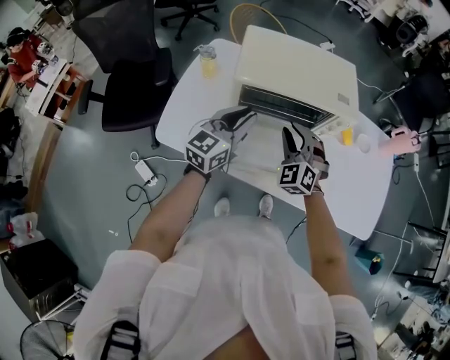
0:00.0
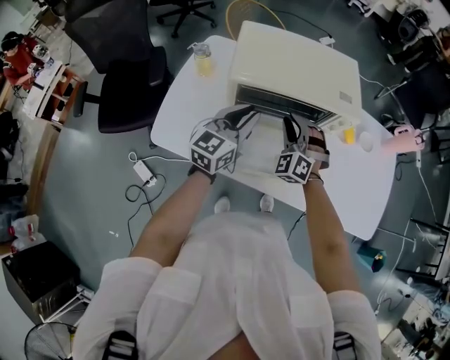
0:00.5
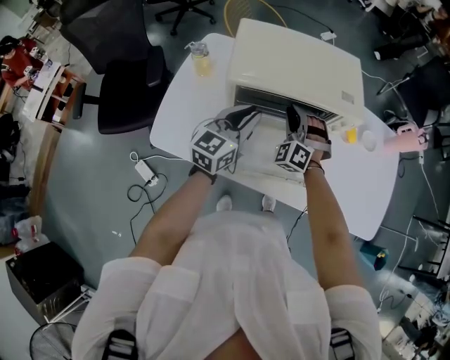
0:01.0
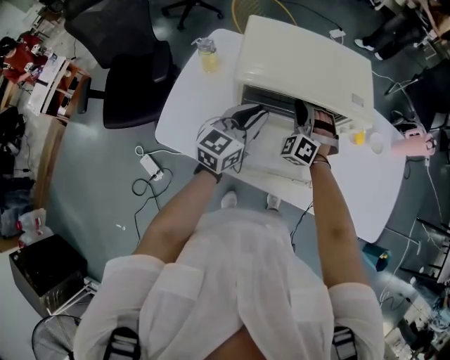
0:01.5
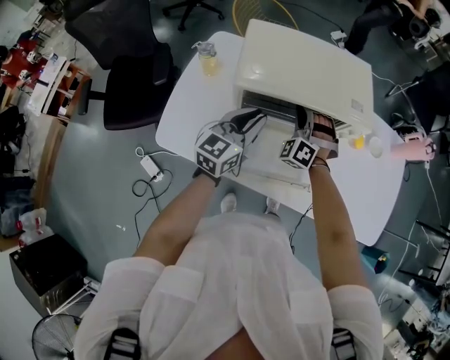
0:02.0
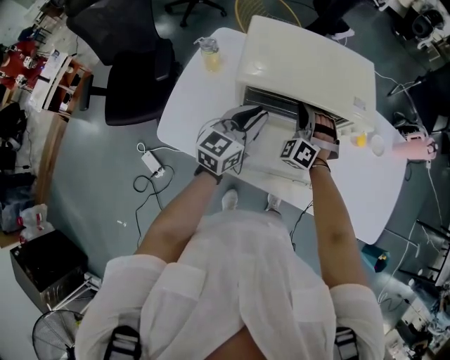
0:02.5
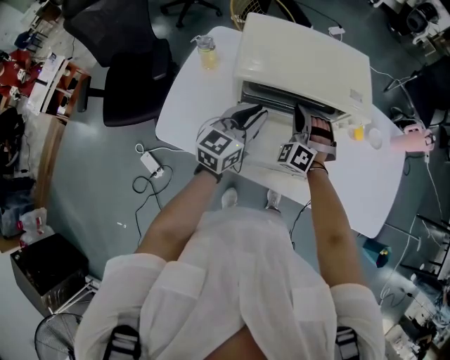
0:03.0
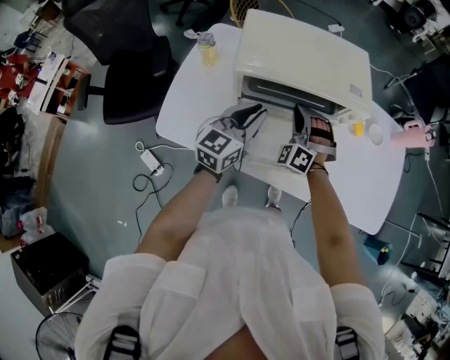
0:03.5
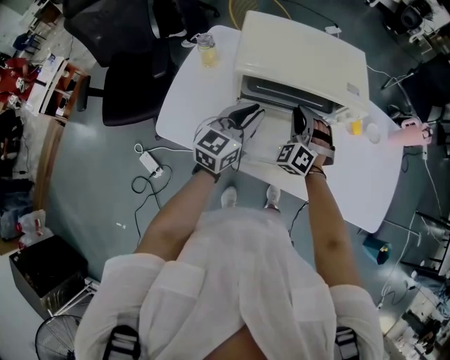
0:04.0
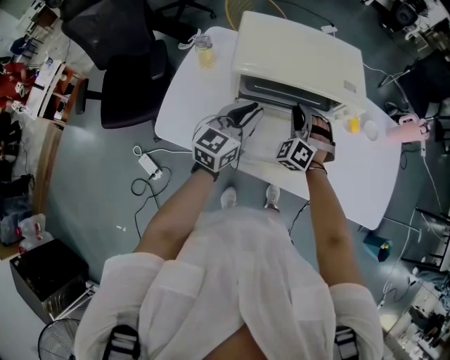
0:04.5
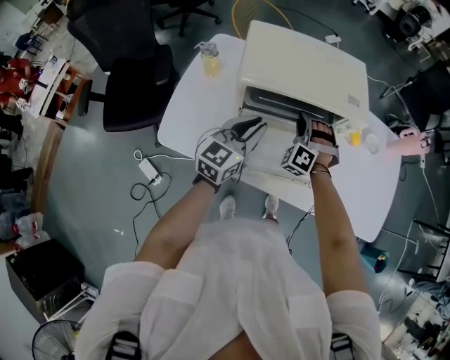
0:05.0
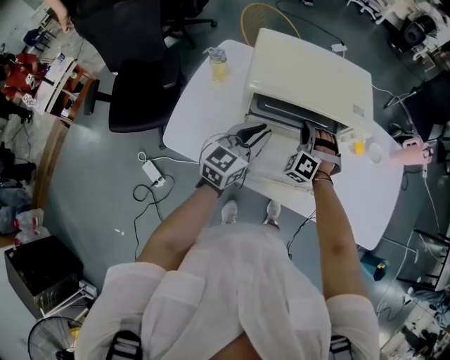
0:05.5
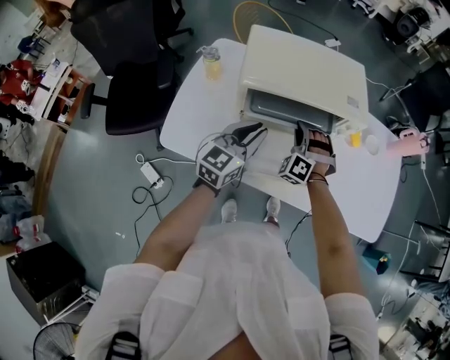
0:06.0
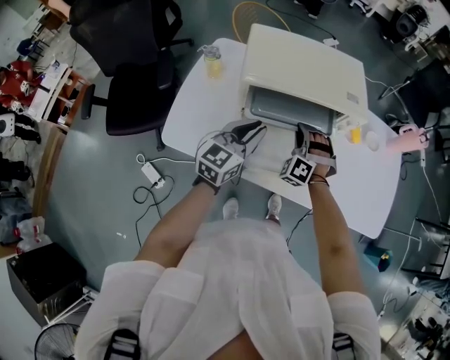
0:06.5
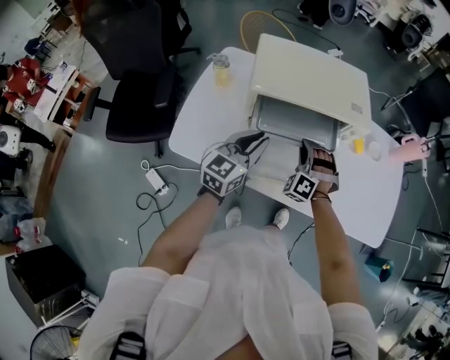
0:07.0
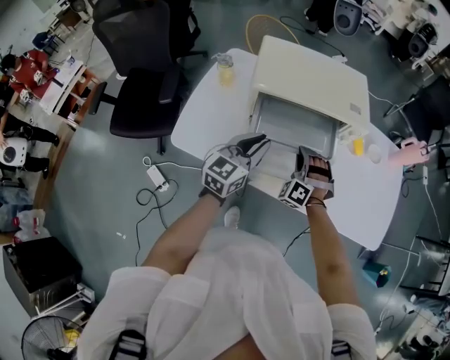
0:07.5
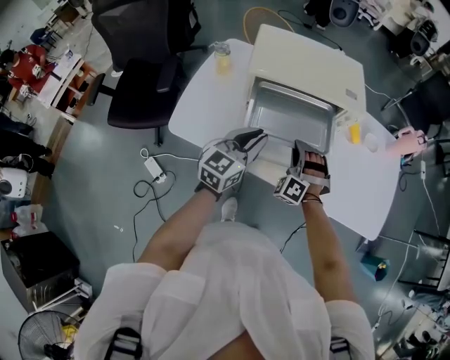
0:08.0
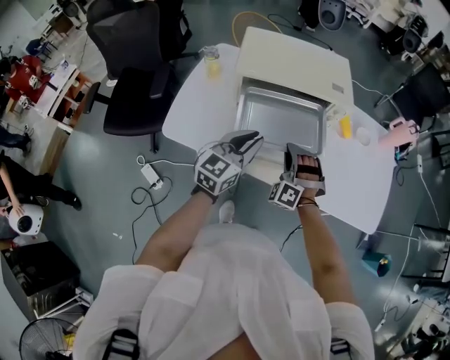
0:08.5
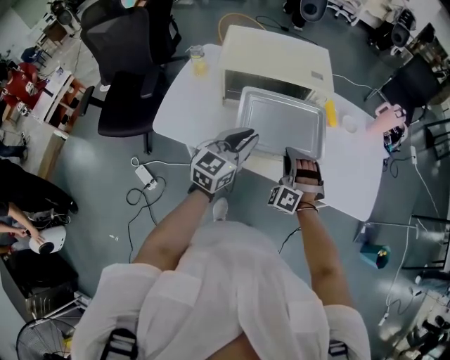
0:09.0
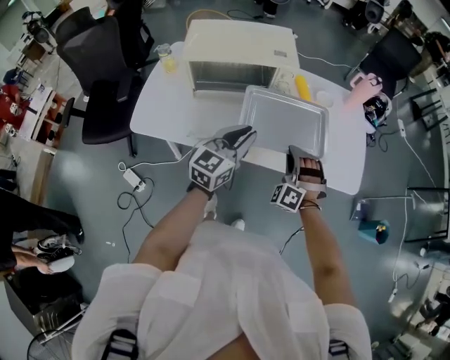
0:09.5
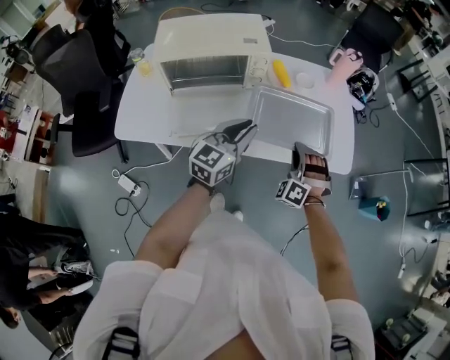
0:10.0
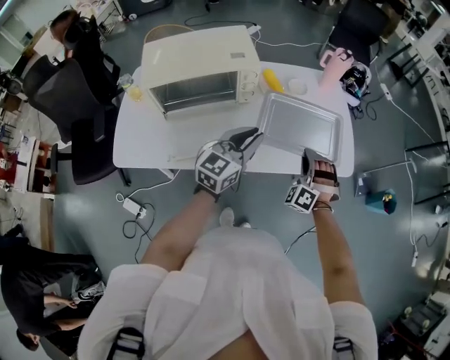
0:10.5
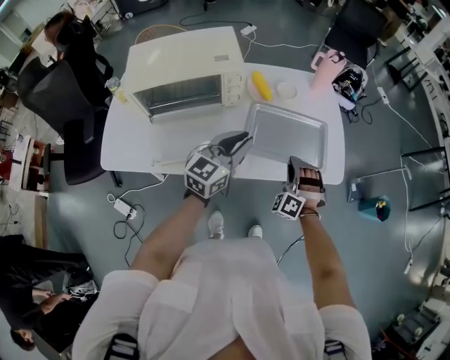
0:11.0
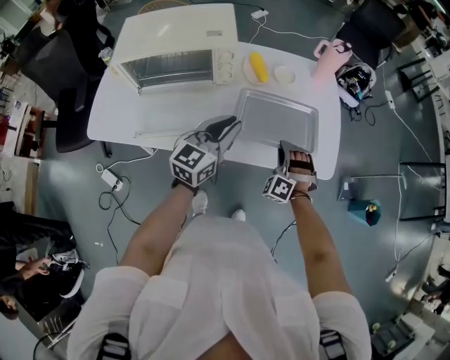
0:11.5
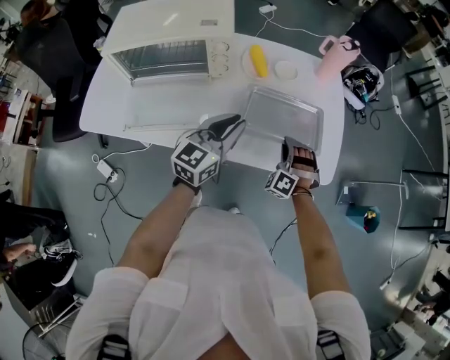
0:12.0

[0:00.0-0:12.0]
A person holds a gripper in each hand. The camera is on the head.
0:00.0 to 0:02.0: The right gripper goes approximately 10 cm forward, and turns by some 20 degrees, while the left gripper moves about 5 cm.
0:02.0 to 0:04.0: The right gripper travels backward by roughly 5 cm.
0:04.0 to 0:06.0: The grippers move only a little.
0:06.0 to 0:08.0: The right gripper heads backward, covering approximately 10 cm. The left gripper moves backward, approximately 5 cm.
0:08.0 to 0:10.0: Both grippers travel together to the right, about 30 cm.
0:10.0 to 0:12.0: The right gripper heads forward, downward and to the right, covering roughly 20 cm. Meanwhile the left gripper shifts some 15 cm forward, to the right and downward.

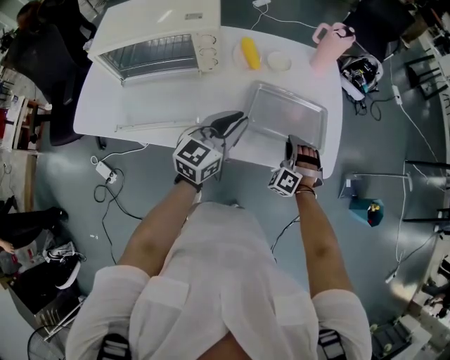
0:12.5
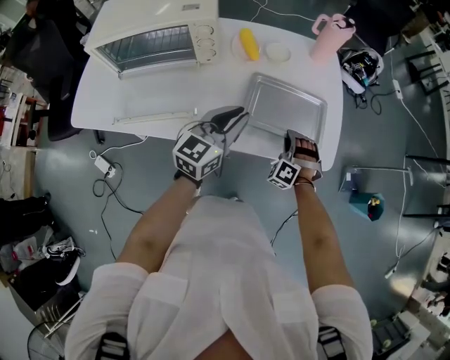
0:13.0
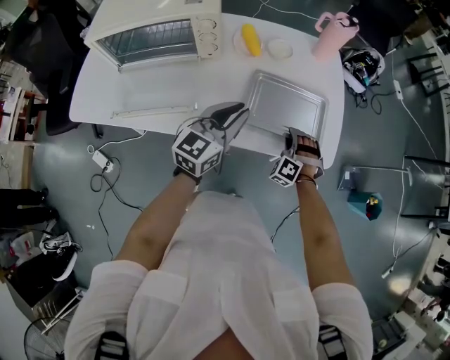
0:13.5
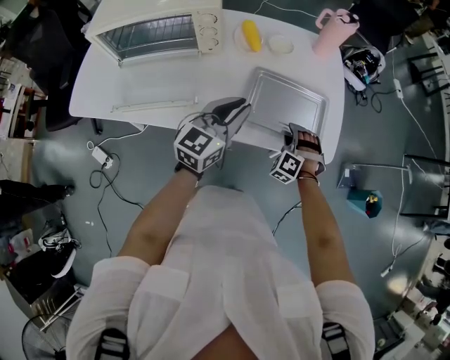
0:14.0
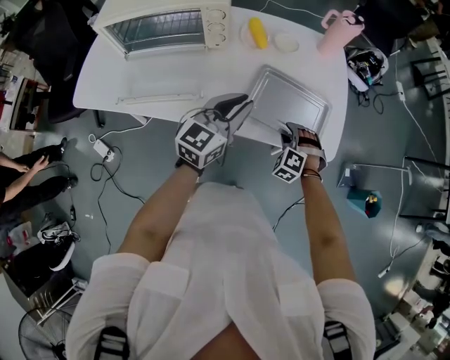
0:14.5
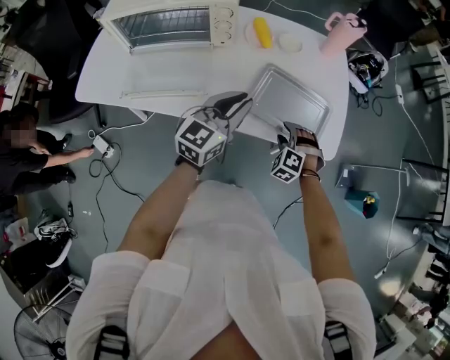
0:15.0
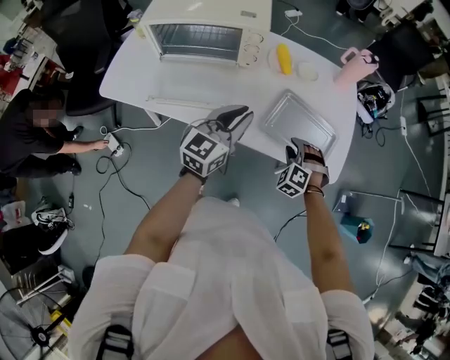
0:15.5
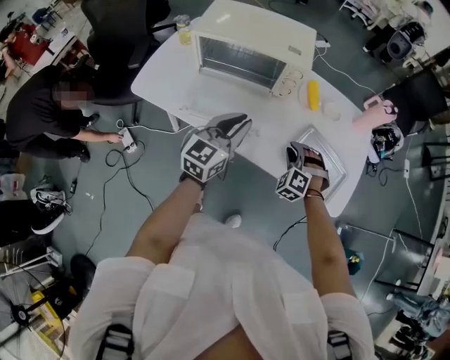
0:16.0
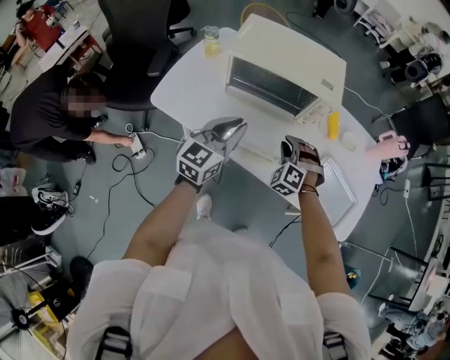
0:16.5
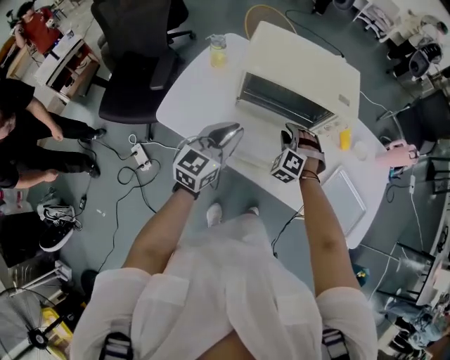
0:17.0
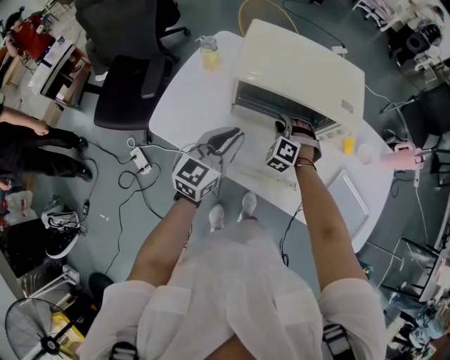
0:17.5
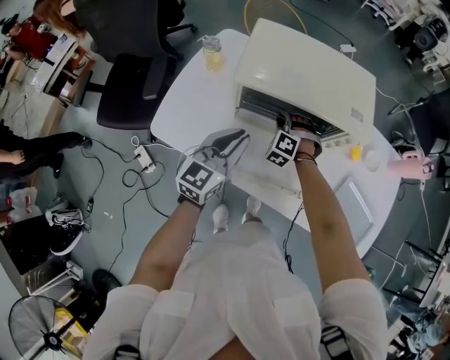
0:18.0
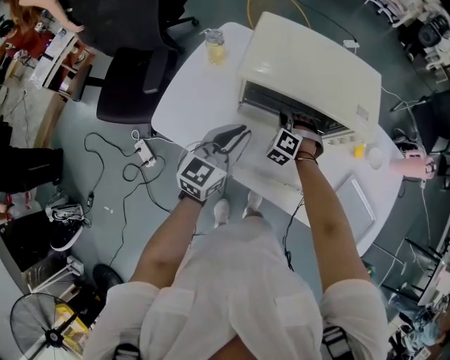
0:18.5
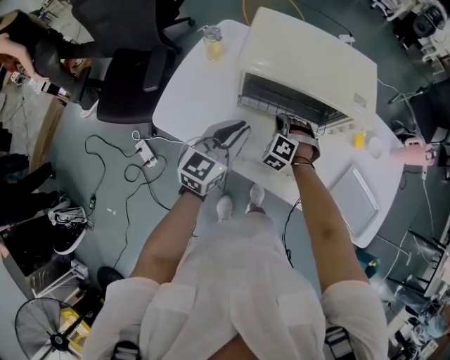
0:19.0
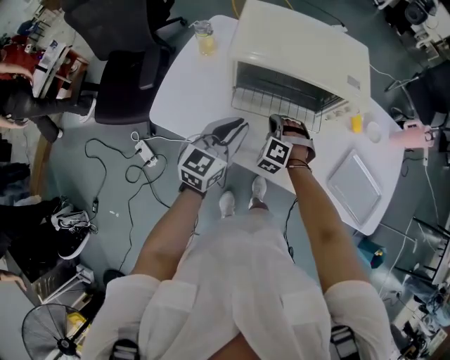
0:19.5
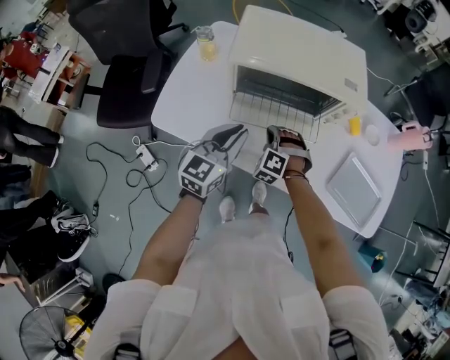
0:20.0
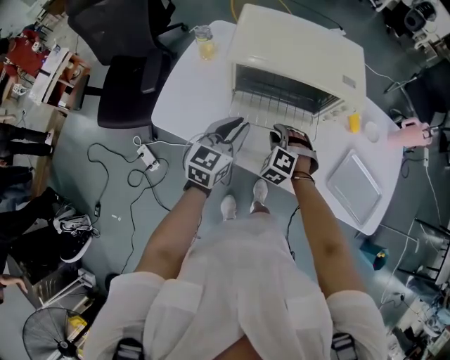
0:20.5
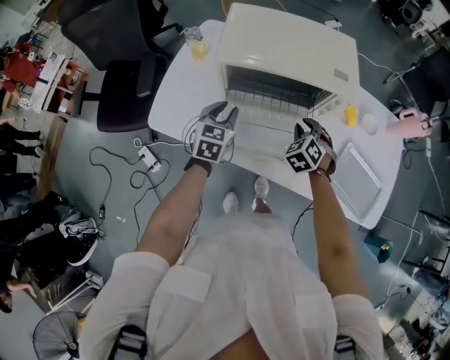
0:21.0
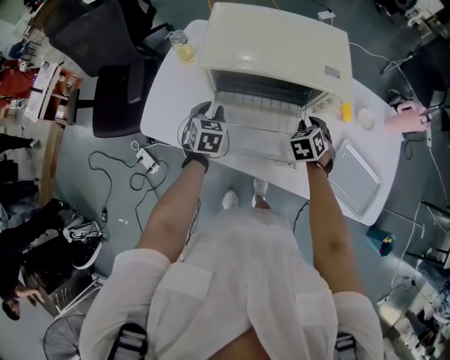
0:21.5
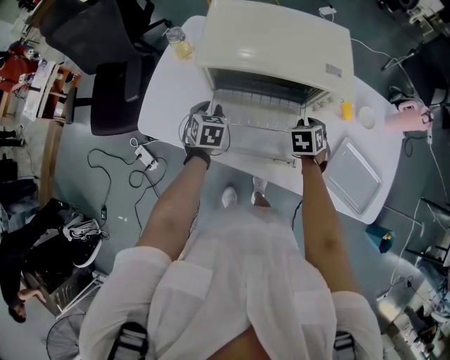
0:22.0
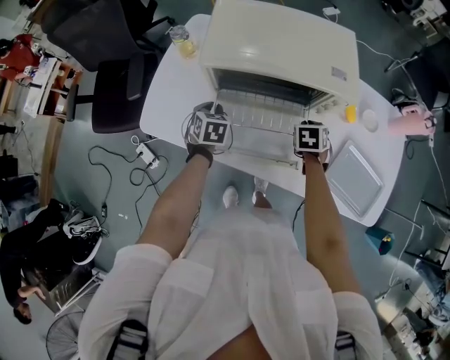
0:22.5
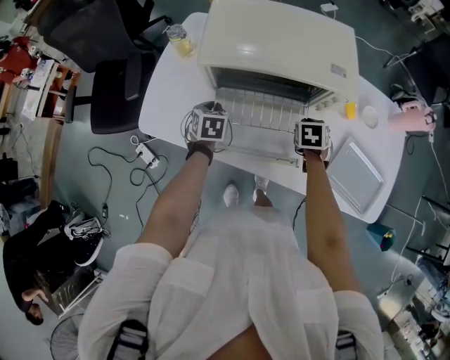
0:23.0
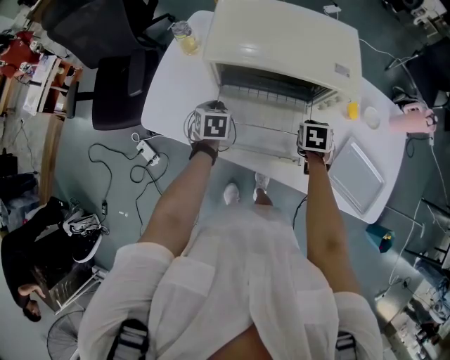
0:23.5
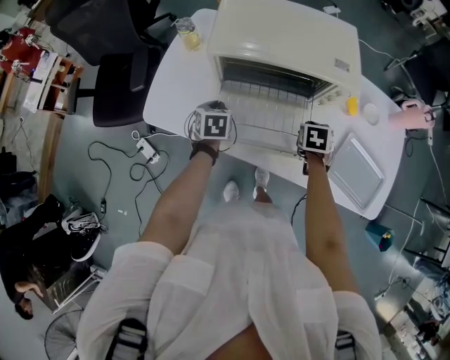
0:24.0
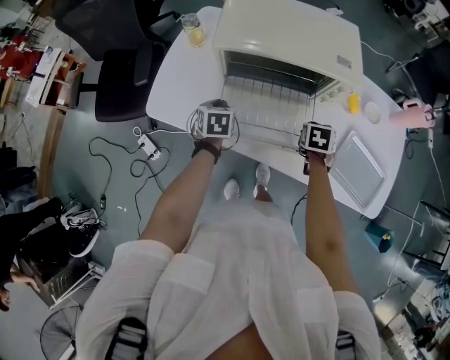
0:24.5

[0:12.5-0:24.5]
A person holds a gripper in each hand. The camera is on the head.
0:12.5 to 0:14.5: The right gripper moves roughly 5 cm, changes its angle by some 20 degrees, and opens.
0:14.5 to 0:16.5: The right gripper shifts approximately 40 cm to the left and upward, changes its angle by some 20 degrees, and closes up, while the left gripper travels to the left by roughly 35 cm, and rotates some 20 degrees.
0:16.5 to 0:18.5: The left gripper goes about 15 cm forward, to the left and downward. The right gripper is displaced forward, to the left and downward by about 25 cm.
0:18.5 to 0:20.5: The right gripper heads backward, covering about 15 cm, and opens its fingers.
0:20.5 to 0:22.5: The left gripper heads downward, forward and to the left, covering about 15 cm, and tips its fingers downward by about 40 degrees. Meanwhile the right gripper heads to the right and forward, covering roughly 20 cm, and rolls clockwise, seen from behind, by about 60 degrees.
0:22.5 to 0:24.5: The right gripper ends up some 5 cm from where it was.

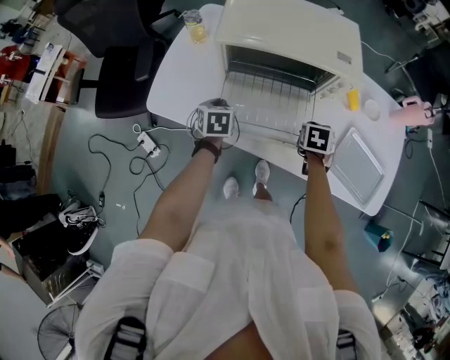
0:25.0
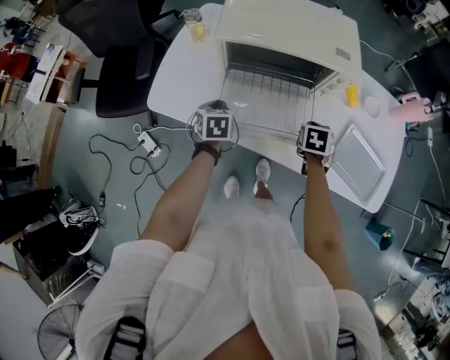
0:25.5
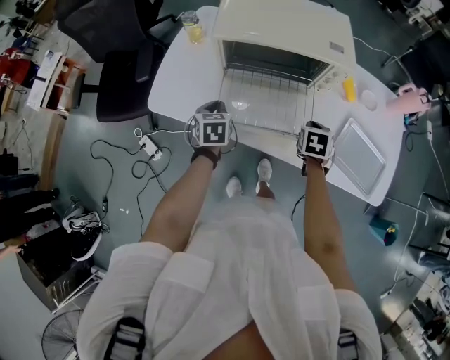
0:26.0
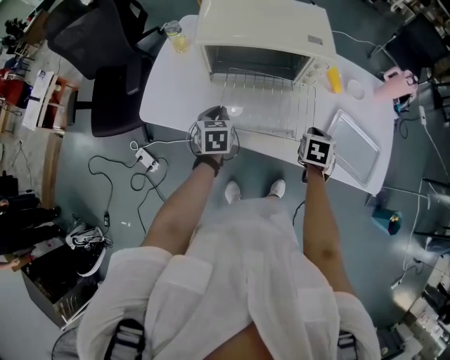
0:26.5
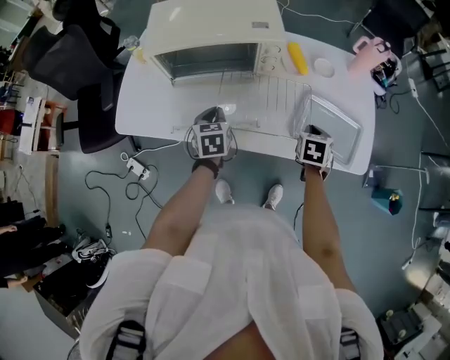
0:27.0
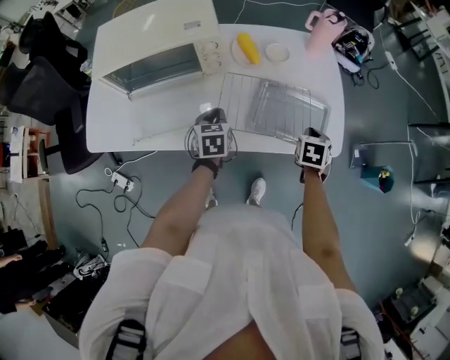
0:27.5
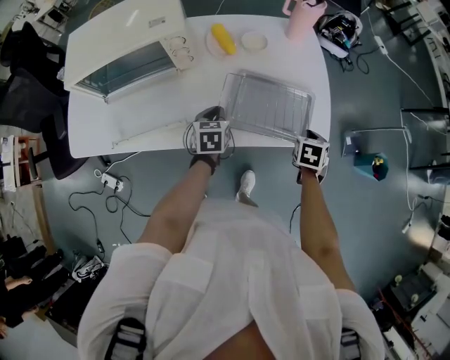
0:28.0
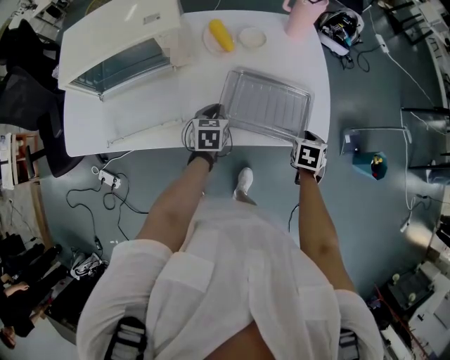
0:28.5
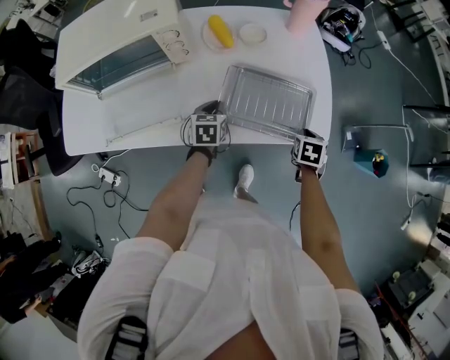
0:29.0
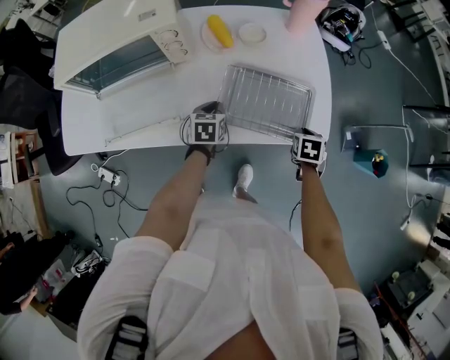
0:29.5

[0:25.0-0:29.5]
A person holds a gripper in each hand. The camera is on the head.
0:25.0 to 0:27.0: The right gripper shifts roughly 20 cm to the right and backward. Meanwhile the left gripper goes some 20 cm to the right.
0:27.0 to 0:29.5: The right gripper goes some 25 cm to the right. The left gripper shifts roughly 30 cm to the right and downward, and swivels approximately 20 degrees.
